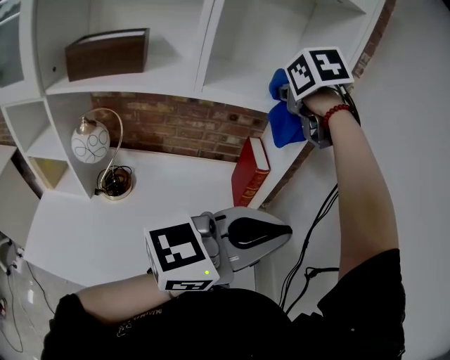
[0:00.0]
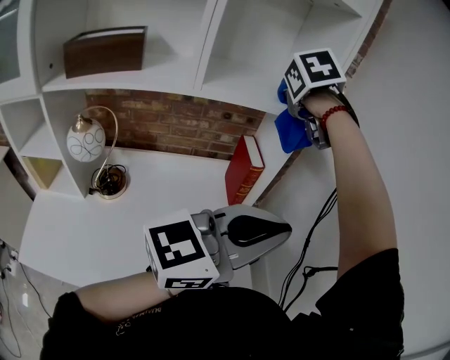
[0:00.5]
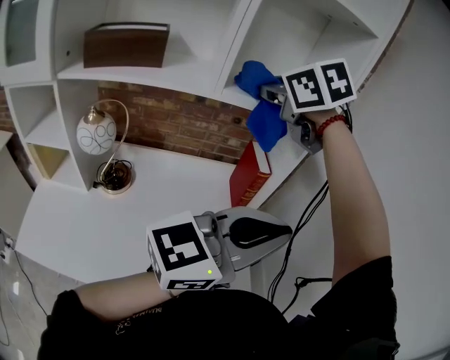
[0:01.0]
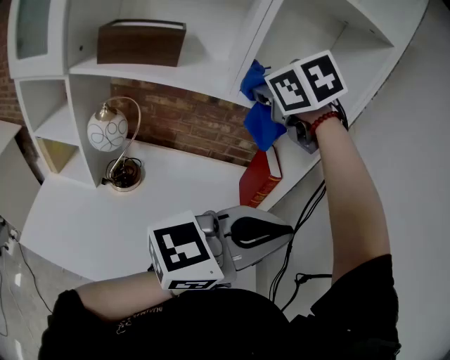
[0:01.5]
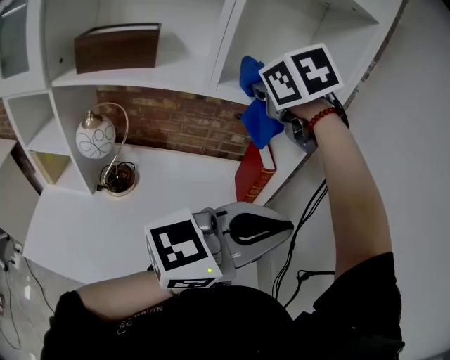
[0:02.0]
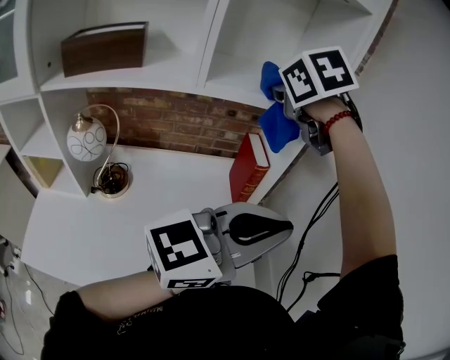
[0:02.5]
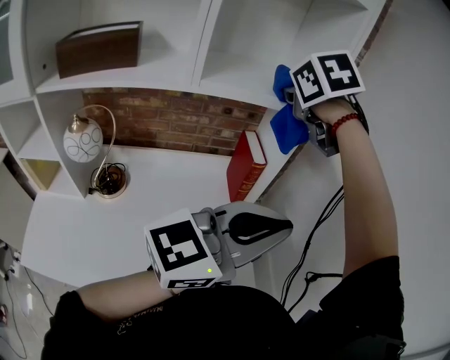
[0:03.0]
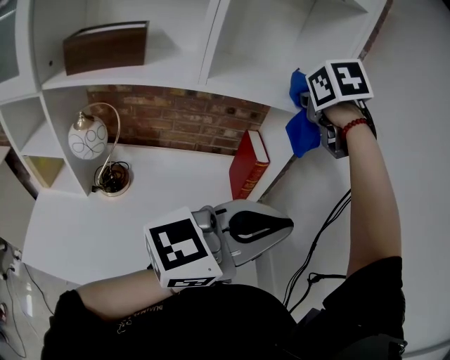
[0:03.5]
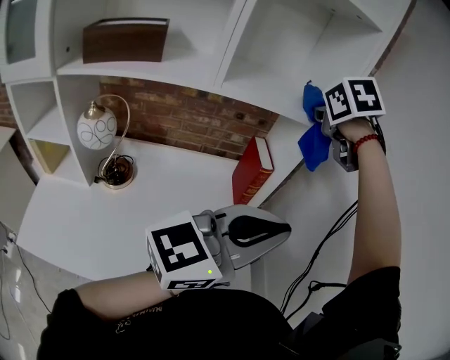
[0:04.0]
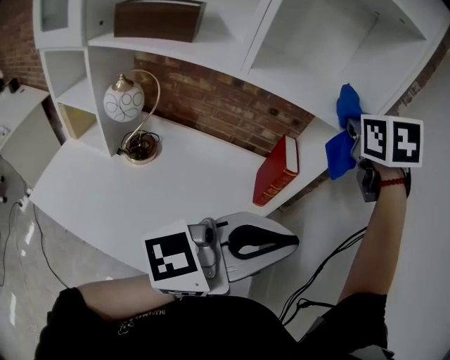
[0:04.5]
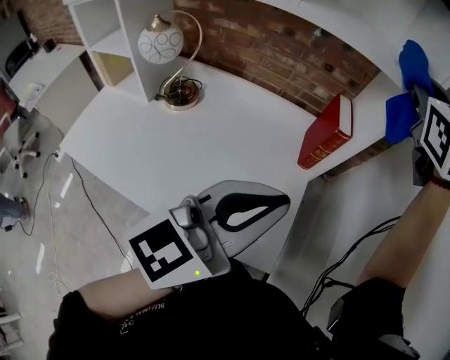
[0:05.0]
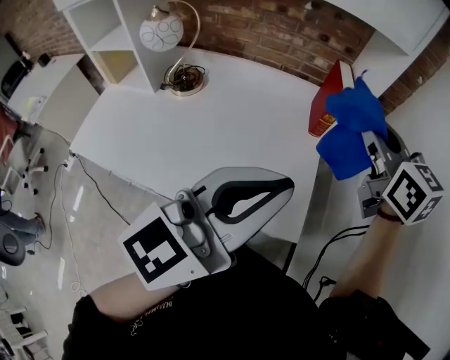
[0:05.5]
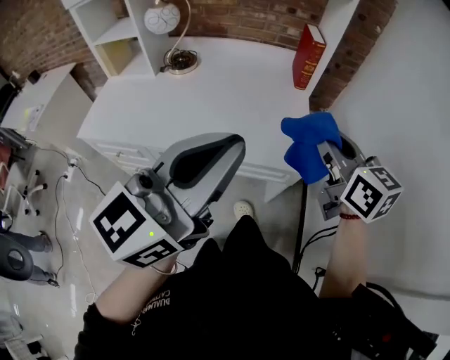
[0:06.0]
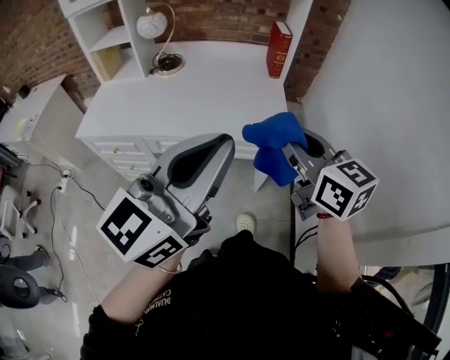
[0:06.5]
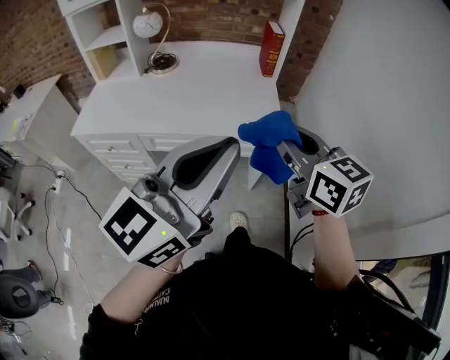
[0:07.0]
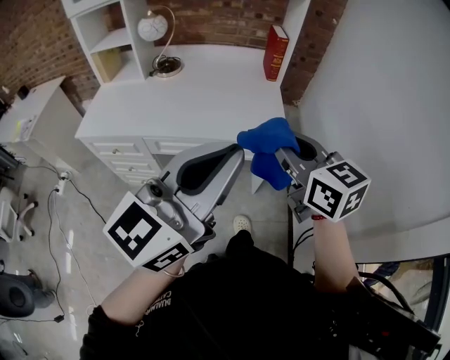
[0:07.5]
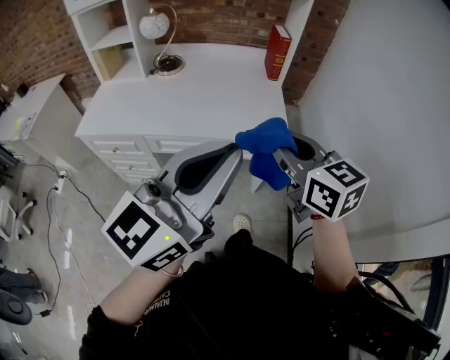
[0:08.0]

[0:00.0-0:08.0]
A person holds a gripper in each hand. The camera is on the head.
0:00.0 to 0:02.0: The right gripper heads backward and to the left, covering approximately 10 cm.
0:02.0 to 0:04.0: The right gripper moves to the right and forward, roughly 15 cm, and swivels some 20 degrees.
0:04.0 to 0:06.0: The left gripper changes place by some 30 cm, and turns by approximately 40 degrees. Meanwhile the right gripper shifts by approximately 50 cm, and turns by some 50 degrees.
0:06.0 to 0:08.0: Both grippers move backward, about 15 cm.

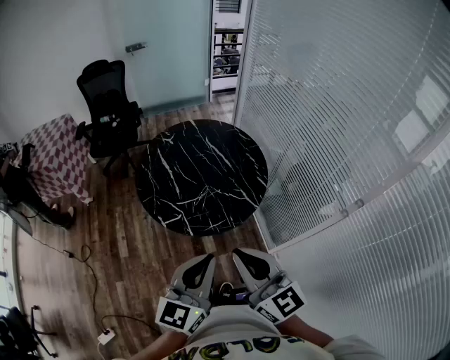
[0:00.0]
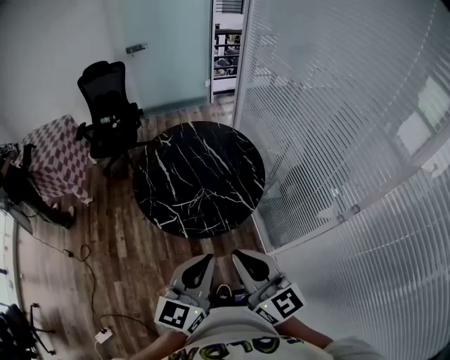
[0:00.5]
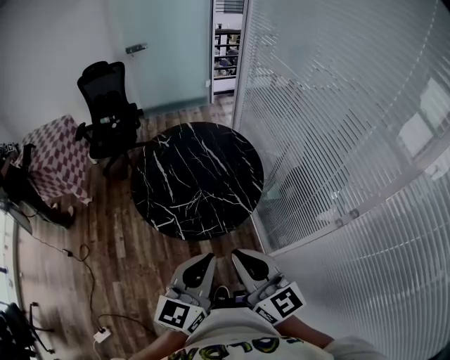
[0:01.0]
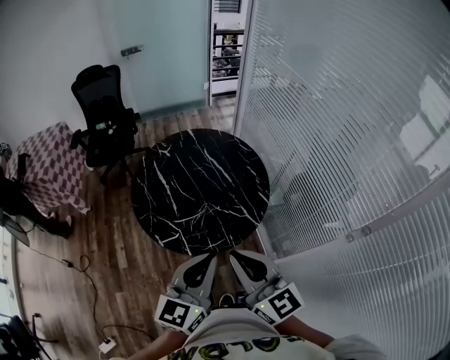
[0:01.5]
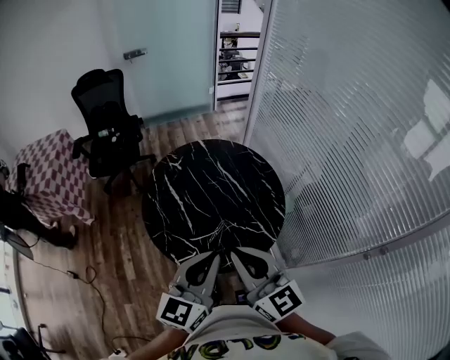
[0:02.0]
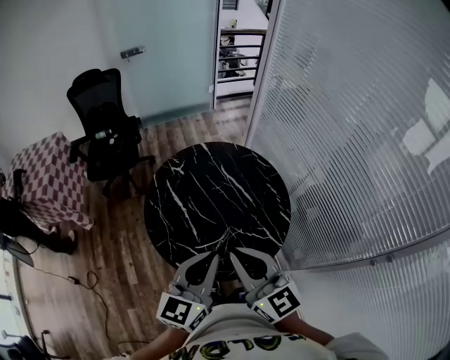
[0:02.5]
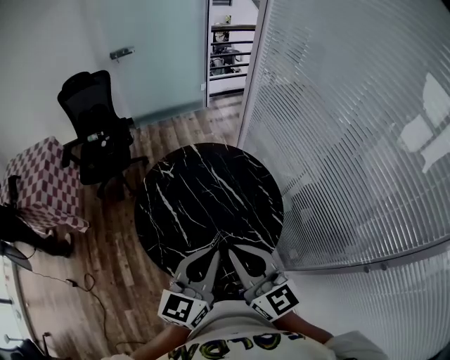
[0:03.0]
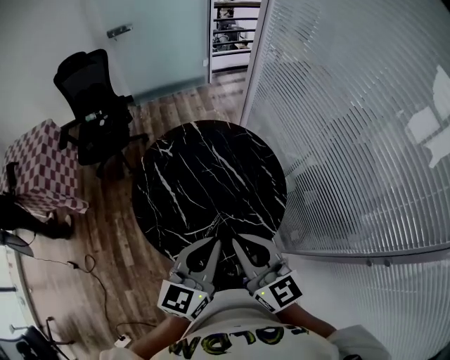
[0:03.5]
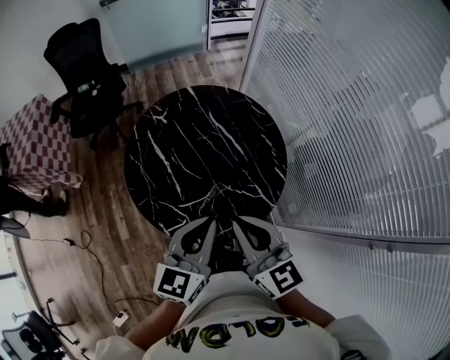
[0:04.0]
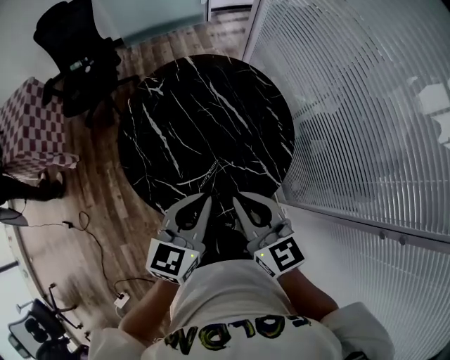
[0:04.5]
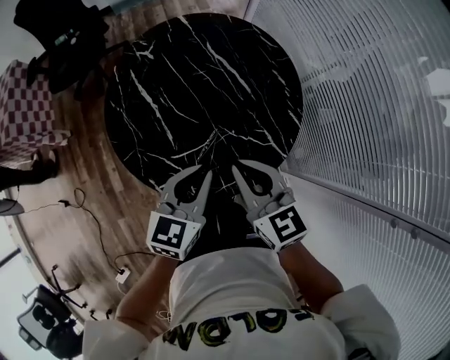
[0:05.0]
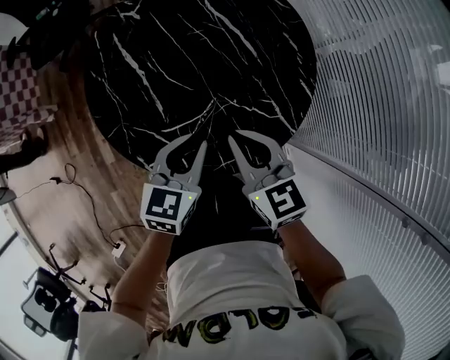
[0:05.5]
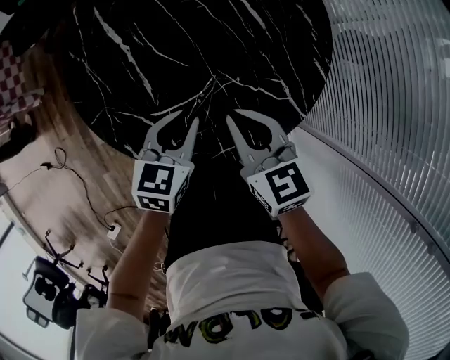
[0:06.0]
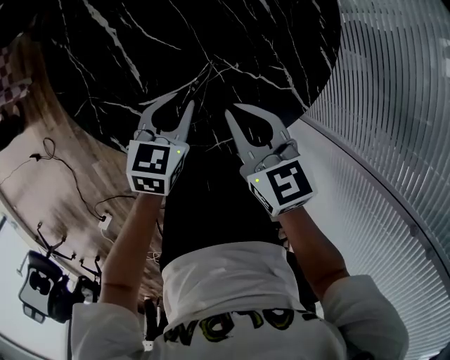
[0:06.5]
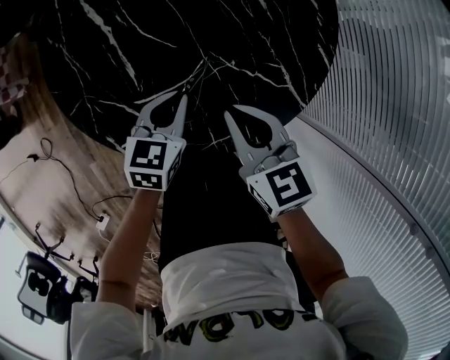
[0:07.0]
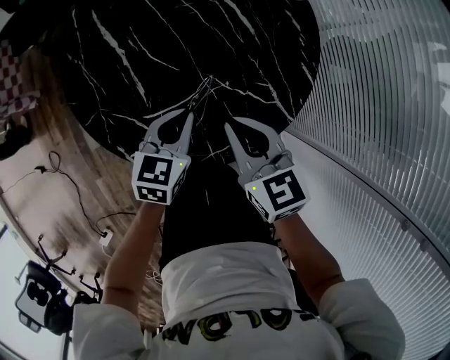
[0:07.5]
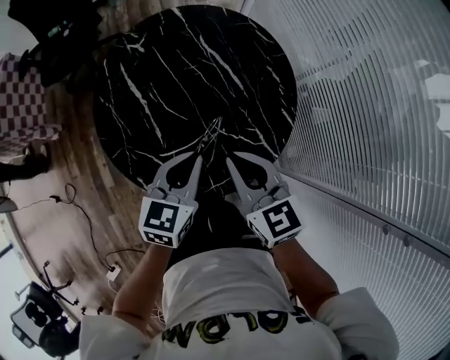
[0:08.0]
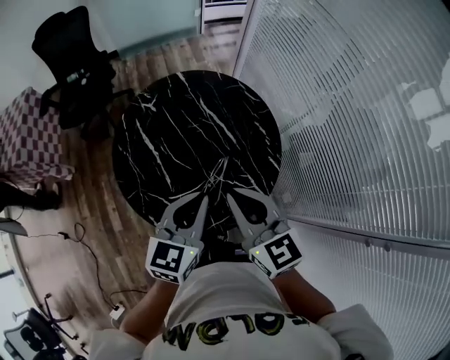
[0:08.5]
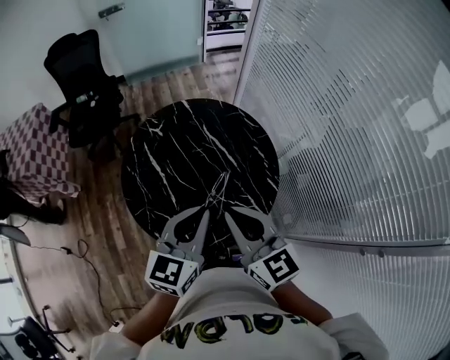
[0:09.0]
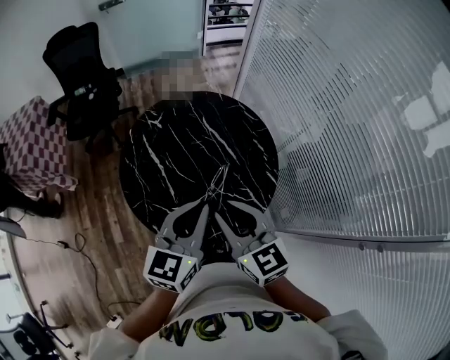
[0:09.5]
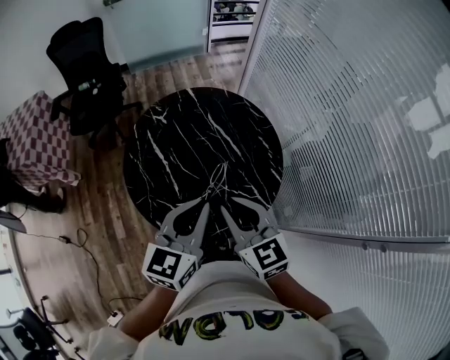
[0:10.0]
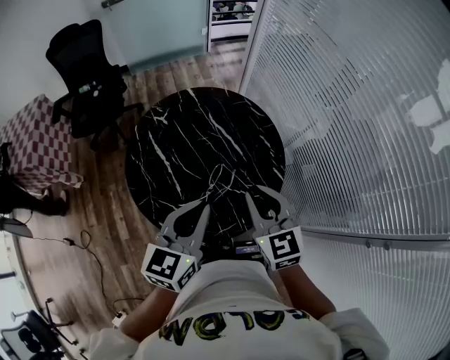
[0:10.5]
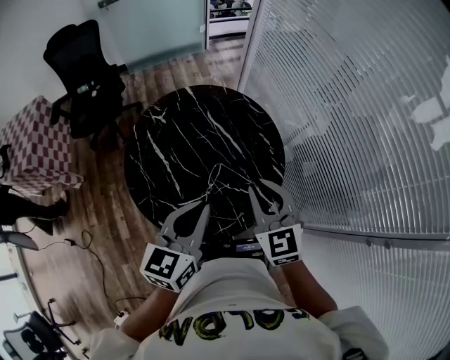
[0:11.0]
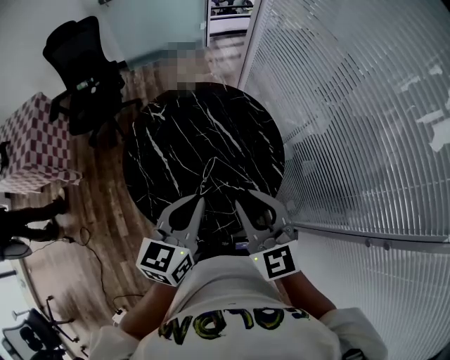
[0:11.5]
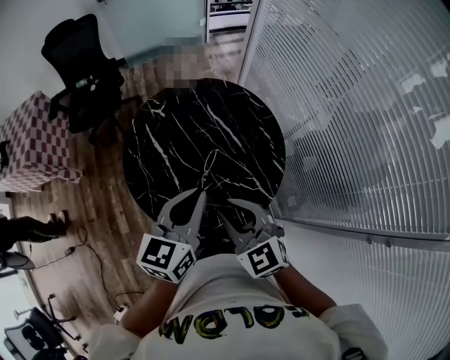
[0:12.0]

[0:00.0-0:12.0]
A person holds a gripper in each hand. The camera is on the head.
0:00.0 to 0:02.0: The two grippers go some 20 cm forward.
0:02.0 to 0:04.0: Both grippers travel together forward and downward, roughly 10 cm.
0:04.0 to 0:06.0: Both grippers move downward, about 30 cm. The right gripper swivels some 20 degrees, while the left gripper changes its angle by about 30 degrees.
0:06.0 to 0:08.0: Both grippers travel together upward, roughly 15 cm.
0:08.0 to 0:10.0: The right gripper moves upward, some 10 cm. Meanwhile the left gripper shifts some 20 cm upward.

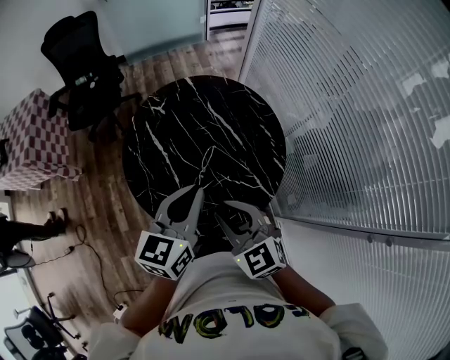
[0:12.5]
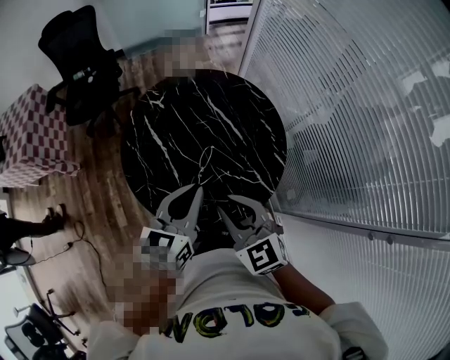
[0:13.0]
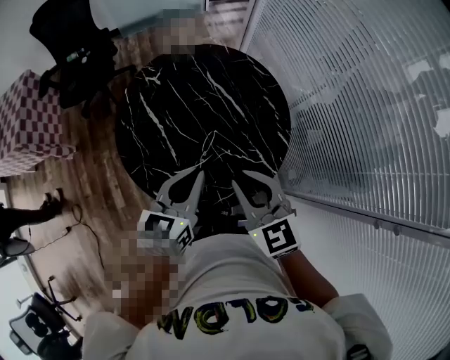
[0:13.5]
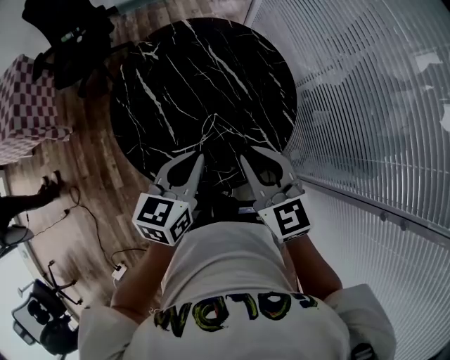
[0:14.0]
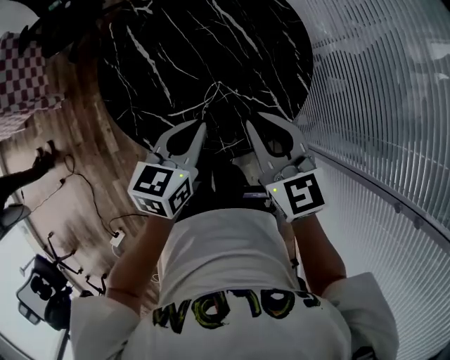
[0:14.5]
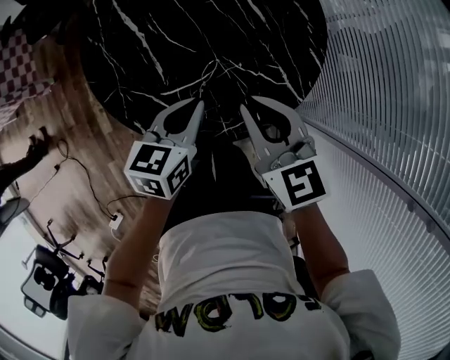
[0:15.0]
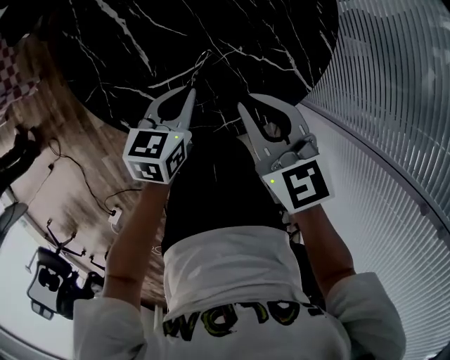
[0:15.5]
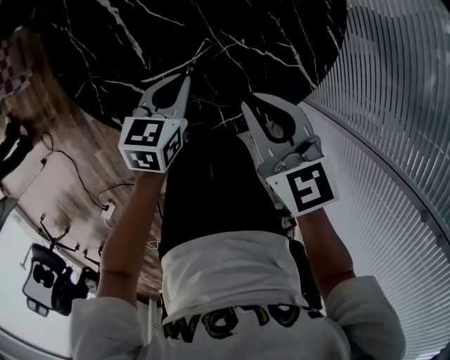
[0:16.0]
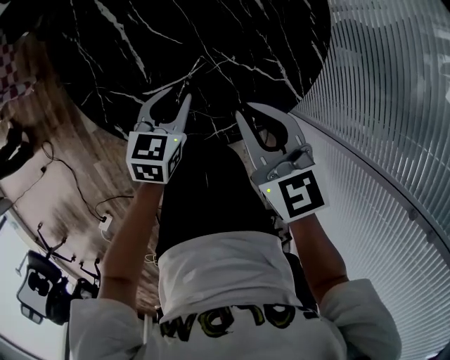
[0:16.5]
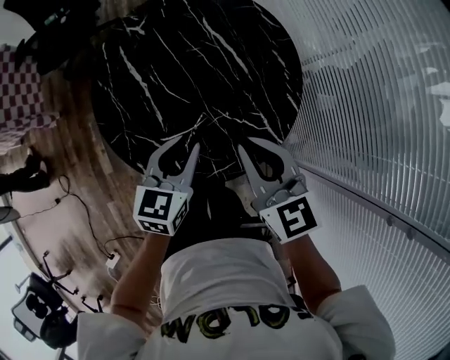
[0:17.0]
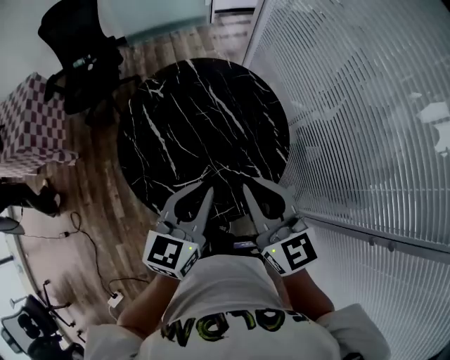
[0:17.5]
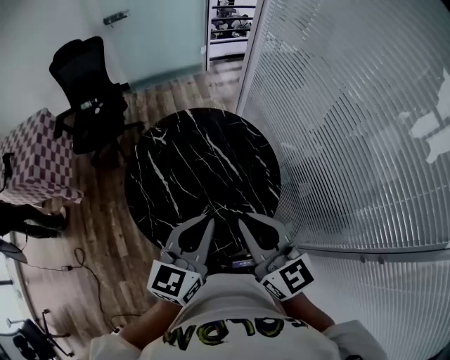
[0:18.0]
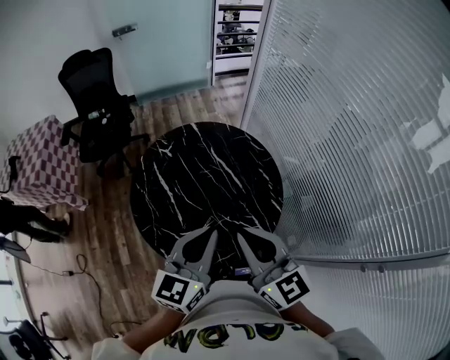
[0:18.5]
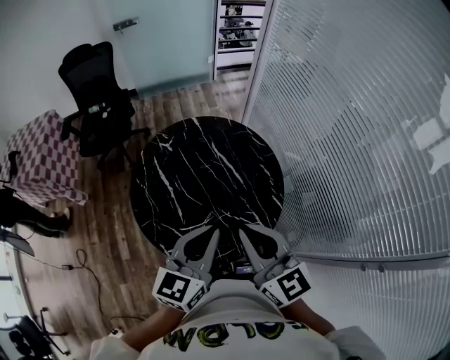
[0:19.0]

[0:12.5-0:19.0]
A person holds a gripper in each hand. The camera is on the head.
0:12.5 to 0:14.5: The right gripper shifts about 10 cm downward and forward. The left gripper travels downward by about 15 cm.
0:14.5 to 0:17.0: The left gripper goes downward and returns, some 20 cm each way, and opens its fingers. Meanwhile the right gripper reaches approximately 15 cm downward, then returns.
0:17.0 to 0:19.0: The two grippers go roughly 20 cm upward. The left gripper swivels about 20 degrees, and closes its fingers.
